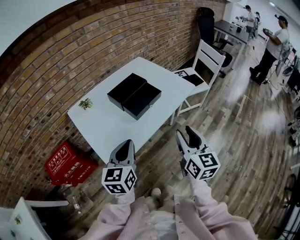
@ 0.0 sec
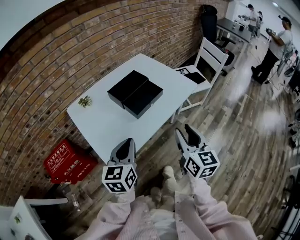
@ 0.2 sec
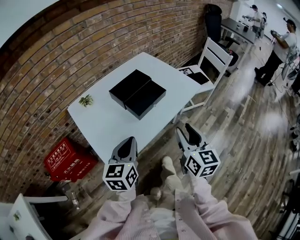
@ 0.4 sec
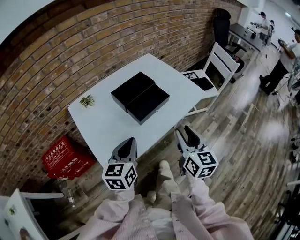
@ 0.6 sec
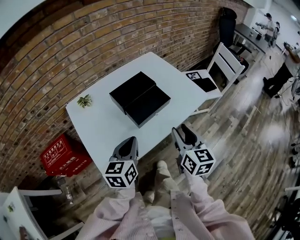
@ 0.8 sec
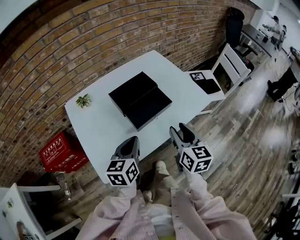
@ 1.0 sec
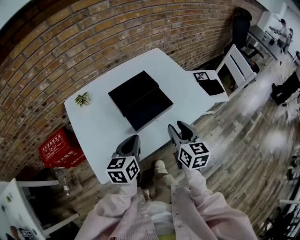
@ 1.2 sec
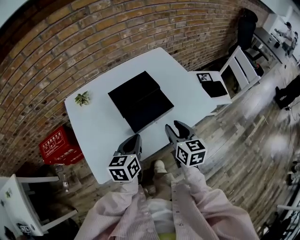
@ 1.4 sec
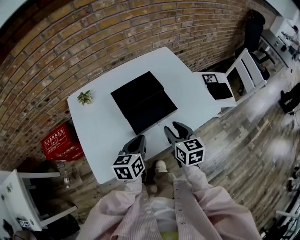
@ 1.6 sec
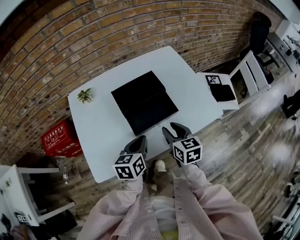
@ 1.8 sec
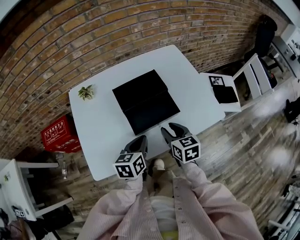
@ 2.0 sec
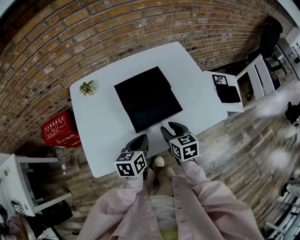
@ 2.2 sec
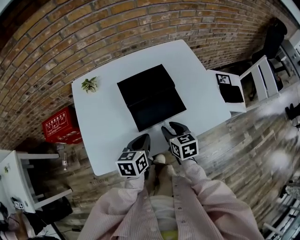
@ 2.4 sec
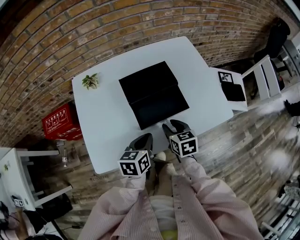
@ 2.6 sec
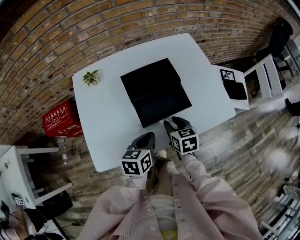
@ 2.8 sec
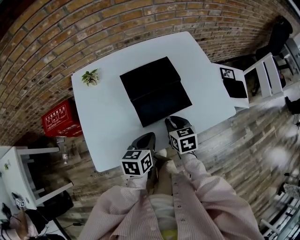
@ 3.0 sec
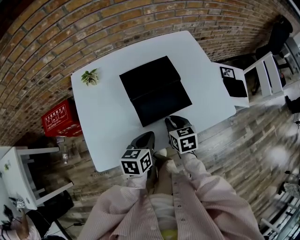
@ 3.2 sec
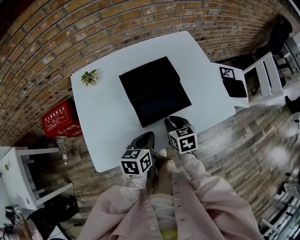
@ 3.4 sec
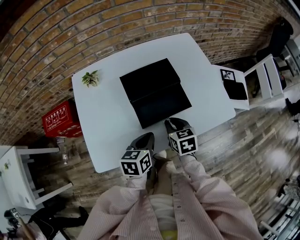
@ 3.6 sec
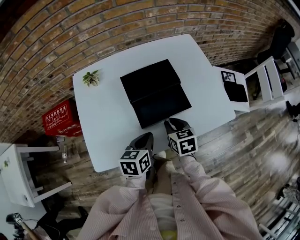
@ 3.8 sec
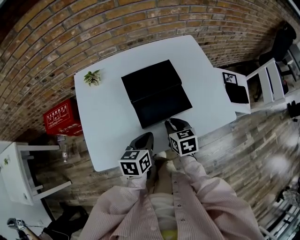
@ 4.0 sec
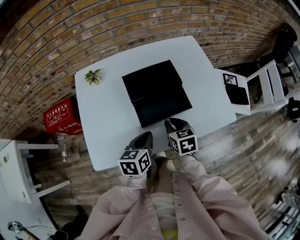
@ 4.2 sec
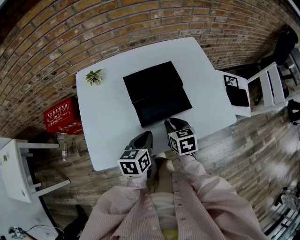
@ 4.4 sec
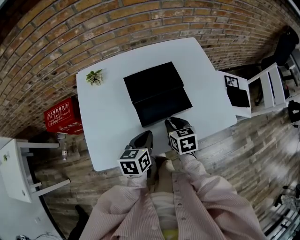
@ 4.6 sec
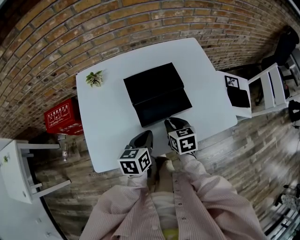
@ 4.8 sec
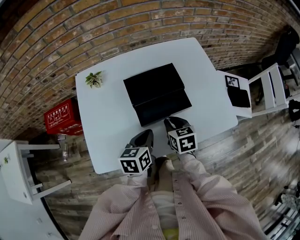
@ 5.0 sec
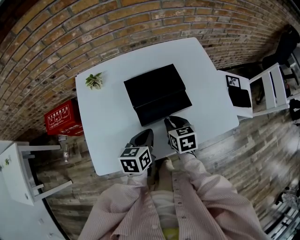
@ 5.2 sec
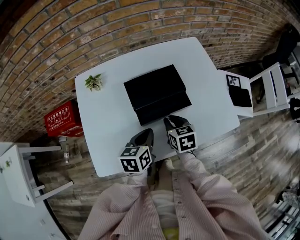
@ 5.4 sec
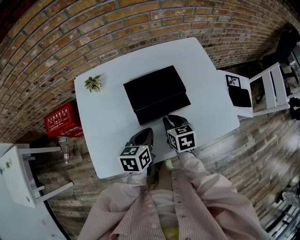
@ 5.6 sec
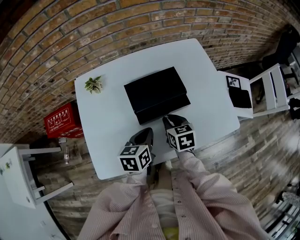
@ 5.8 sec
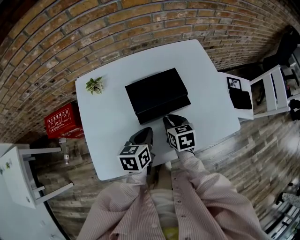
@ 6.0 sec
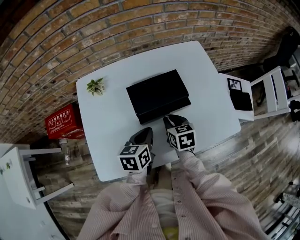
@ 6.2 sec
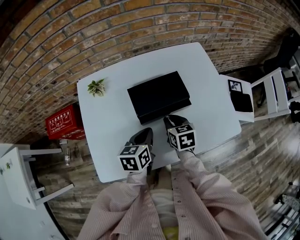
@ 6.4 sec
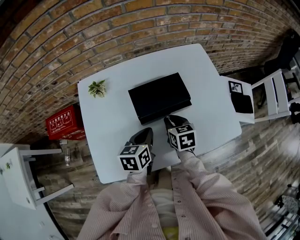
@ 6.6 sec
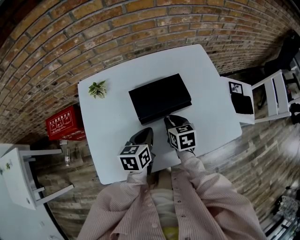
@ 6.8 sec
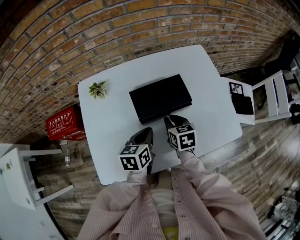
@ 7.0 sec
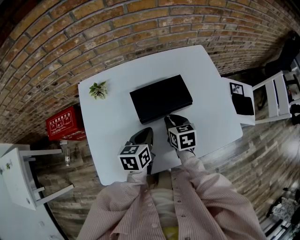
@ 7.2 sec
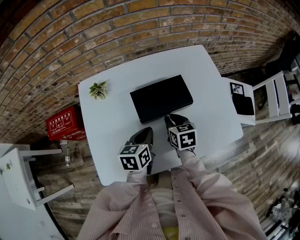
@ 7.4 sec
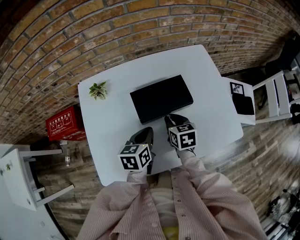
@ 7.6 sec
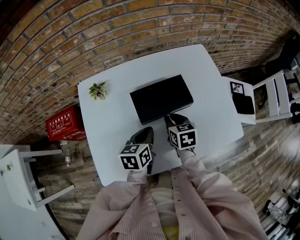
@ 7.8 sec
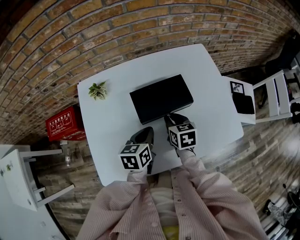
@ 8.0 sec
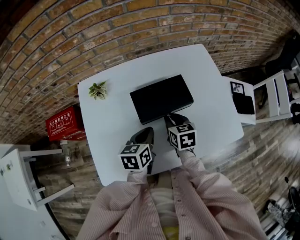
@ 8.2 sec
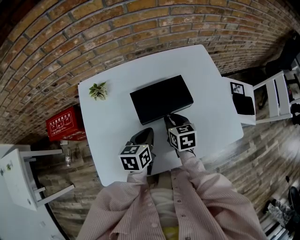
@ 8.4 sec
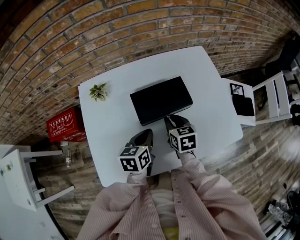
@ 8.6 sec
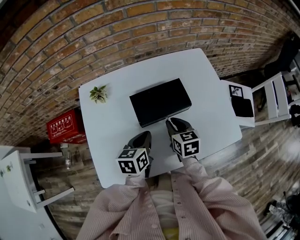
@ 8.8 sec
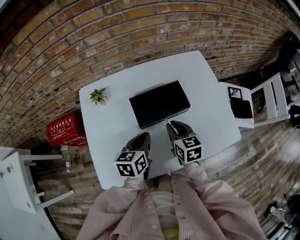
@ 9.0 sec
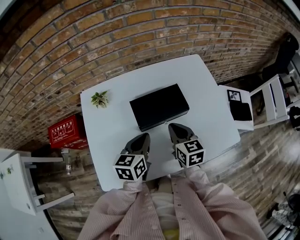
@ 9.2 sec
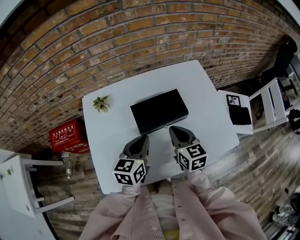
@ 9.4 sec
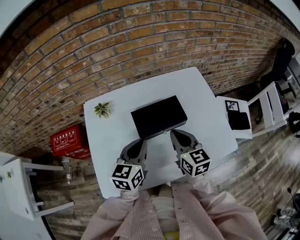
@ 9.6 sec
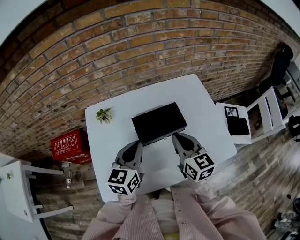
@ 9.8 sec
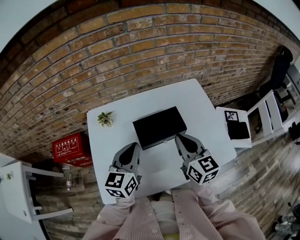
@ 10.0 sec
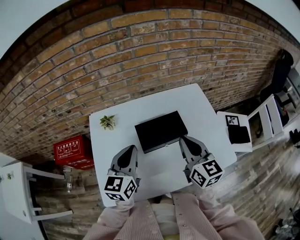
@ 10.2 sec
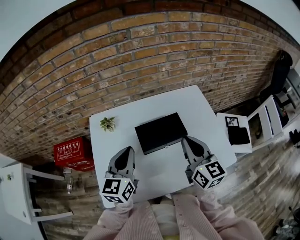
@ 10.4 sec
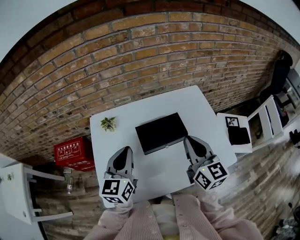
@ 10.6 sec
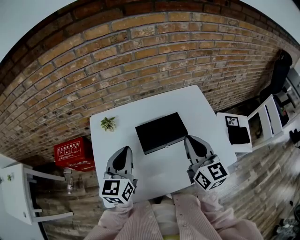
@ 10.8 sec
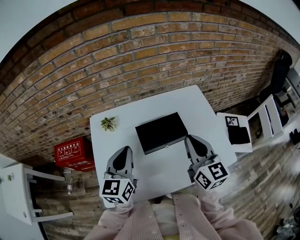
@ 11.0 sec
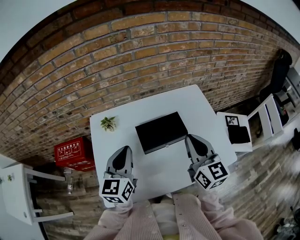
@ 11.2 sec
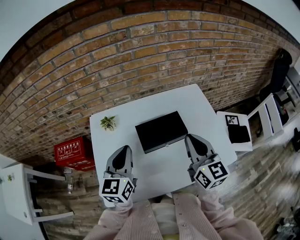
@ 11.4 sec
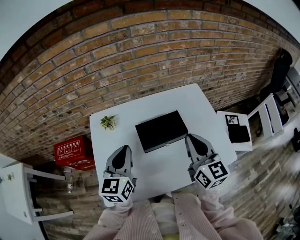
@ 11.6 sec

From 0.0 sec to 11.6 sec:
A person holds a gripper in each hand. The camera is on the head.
From 0.0 sec to 1.4 sec: The grippers both shift forward and downward by about 20 cm. The left gripper swivels approximately 20 degrees, while the right gripper turns by some 30 degrees.
From 1.4 sec to 2.8 sec: The left gripper goes about 5 cm downward. Meanwhile the right gripper heads downward and forward, covering approximately 10 cm, and changes its angle by about 30 degrees.
From 2.8 sec to 4.4 sec: There are only small adjustments of the grippers.
From 4.4 sec to 5.8 sec: The grippers both shift forward by about 5 cm.
From 5.8 sec to 8.8 sec: The grippers stay close to where they were, moving slightly.
From 8.8 sec to 10.2 sec: The grippers both shift upward by roughly 15 cm. The left gripper rotates about 30 degrees. The right gripper tilts its fingers some 30 degrees upward.
From 10.2 sec to 11.6 sec: The grippers make only small movements.

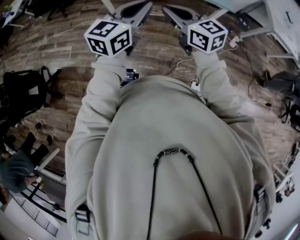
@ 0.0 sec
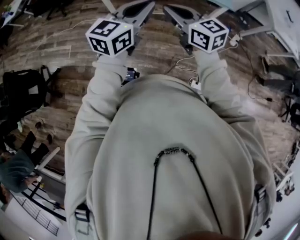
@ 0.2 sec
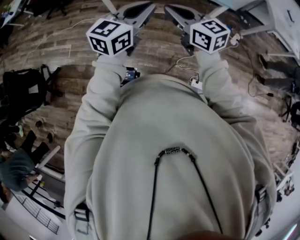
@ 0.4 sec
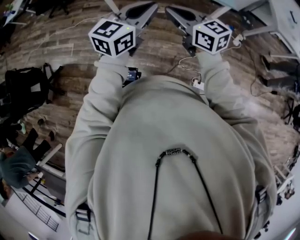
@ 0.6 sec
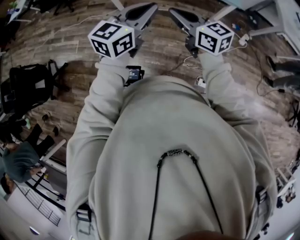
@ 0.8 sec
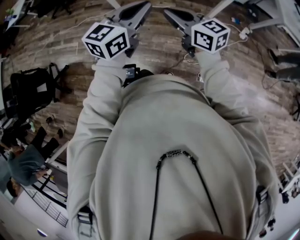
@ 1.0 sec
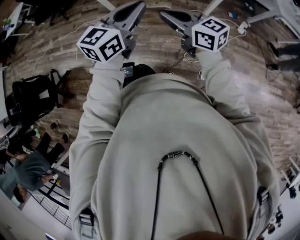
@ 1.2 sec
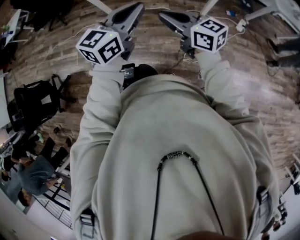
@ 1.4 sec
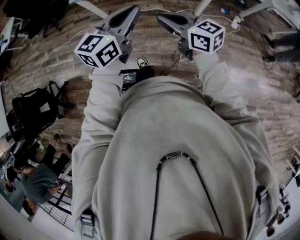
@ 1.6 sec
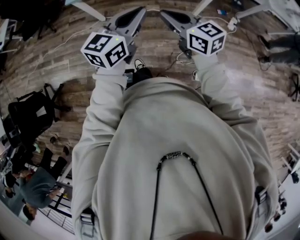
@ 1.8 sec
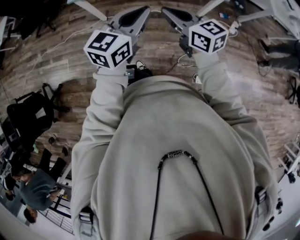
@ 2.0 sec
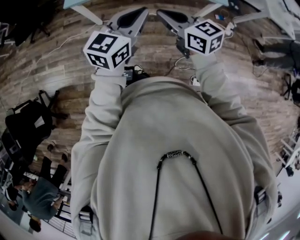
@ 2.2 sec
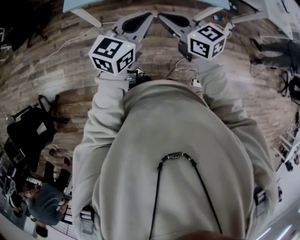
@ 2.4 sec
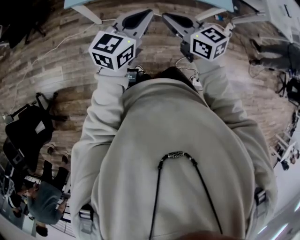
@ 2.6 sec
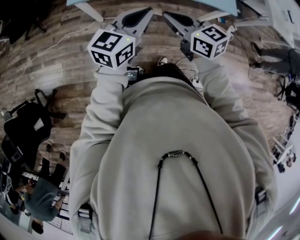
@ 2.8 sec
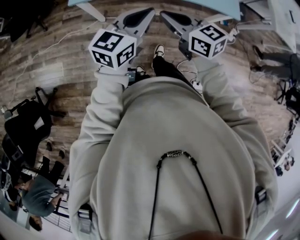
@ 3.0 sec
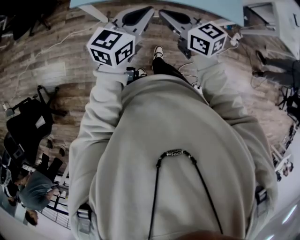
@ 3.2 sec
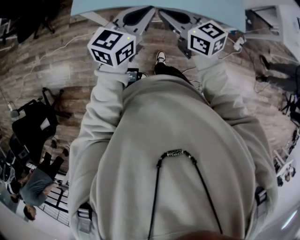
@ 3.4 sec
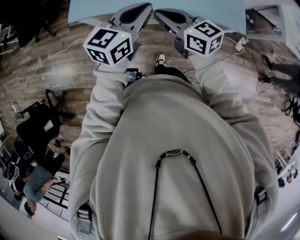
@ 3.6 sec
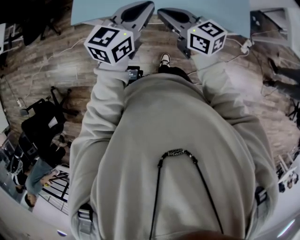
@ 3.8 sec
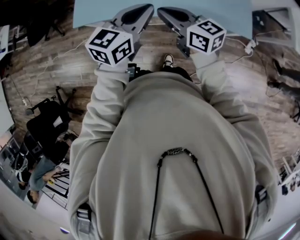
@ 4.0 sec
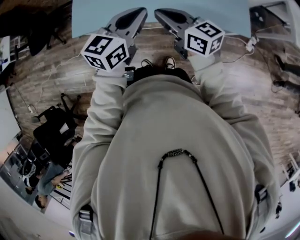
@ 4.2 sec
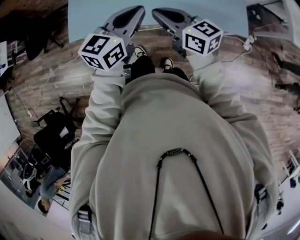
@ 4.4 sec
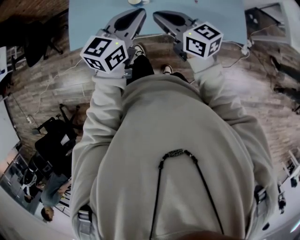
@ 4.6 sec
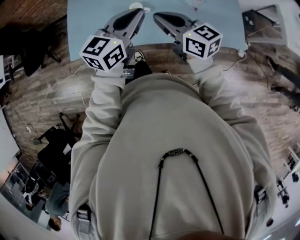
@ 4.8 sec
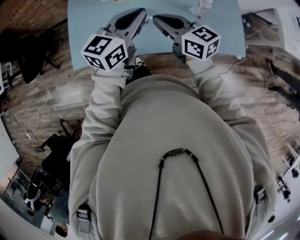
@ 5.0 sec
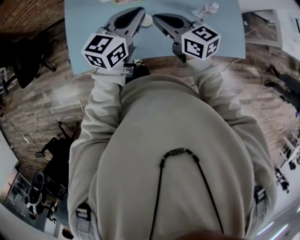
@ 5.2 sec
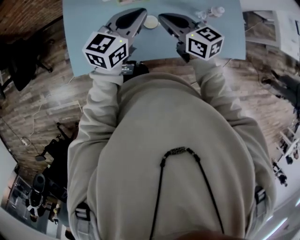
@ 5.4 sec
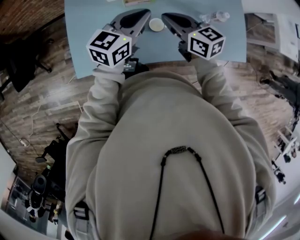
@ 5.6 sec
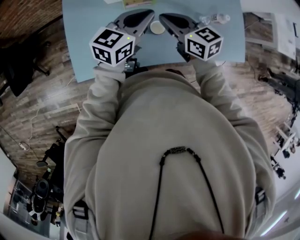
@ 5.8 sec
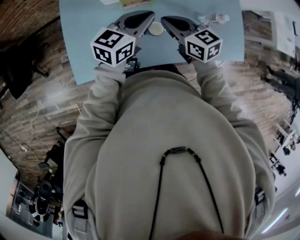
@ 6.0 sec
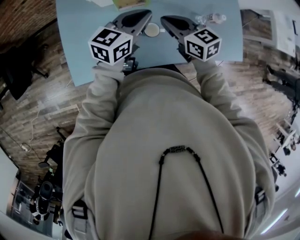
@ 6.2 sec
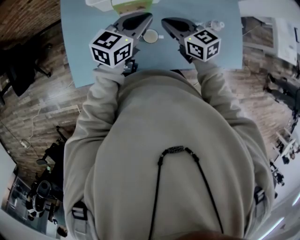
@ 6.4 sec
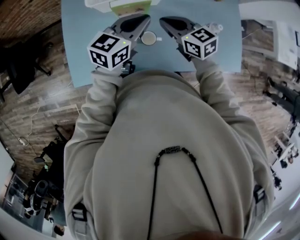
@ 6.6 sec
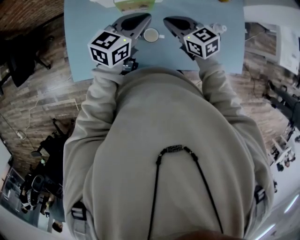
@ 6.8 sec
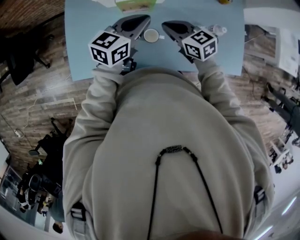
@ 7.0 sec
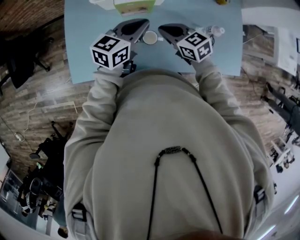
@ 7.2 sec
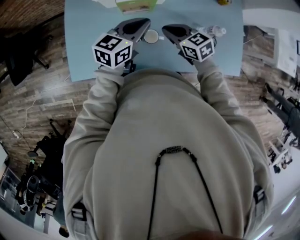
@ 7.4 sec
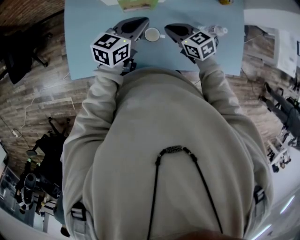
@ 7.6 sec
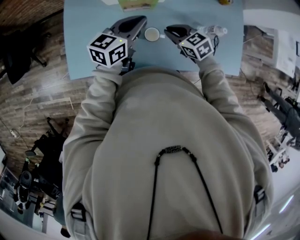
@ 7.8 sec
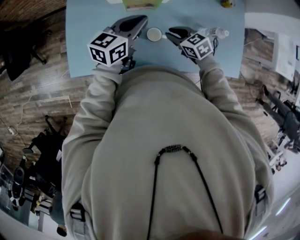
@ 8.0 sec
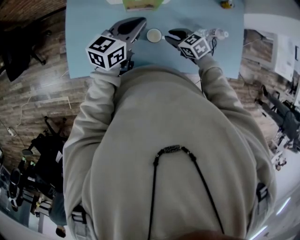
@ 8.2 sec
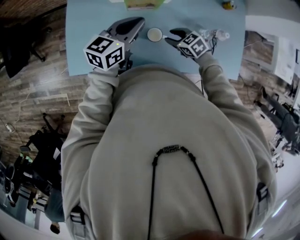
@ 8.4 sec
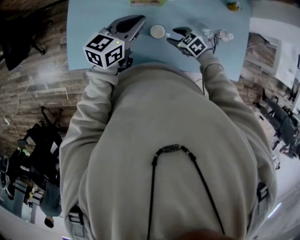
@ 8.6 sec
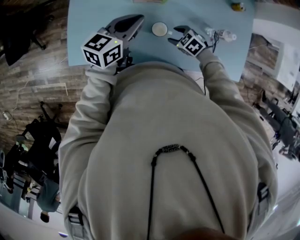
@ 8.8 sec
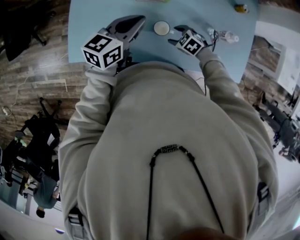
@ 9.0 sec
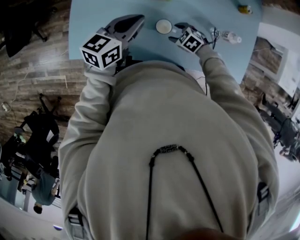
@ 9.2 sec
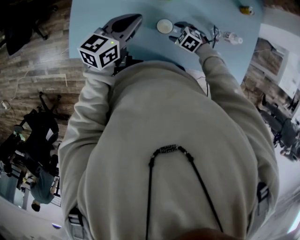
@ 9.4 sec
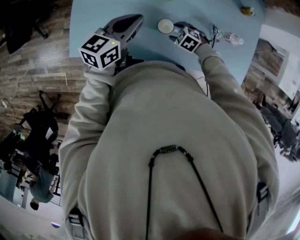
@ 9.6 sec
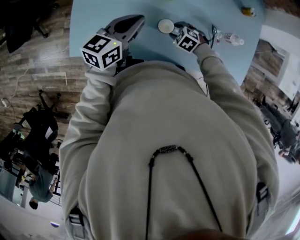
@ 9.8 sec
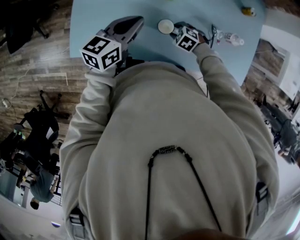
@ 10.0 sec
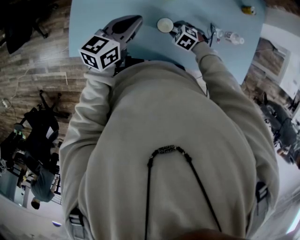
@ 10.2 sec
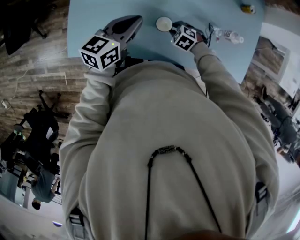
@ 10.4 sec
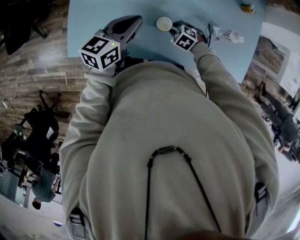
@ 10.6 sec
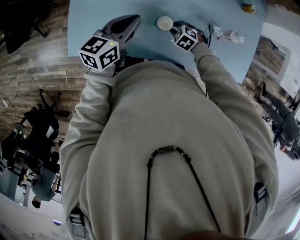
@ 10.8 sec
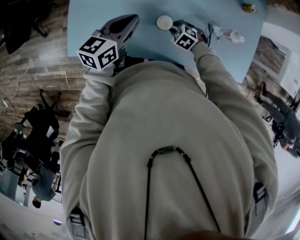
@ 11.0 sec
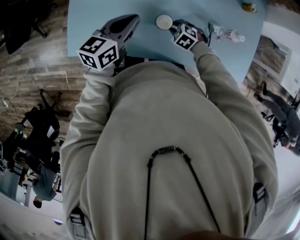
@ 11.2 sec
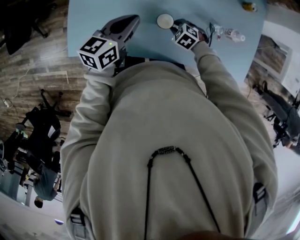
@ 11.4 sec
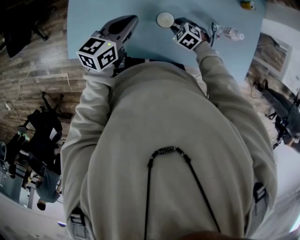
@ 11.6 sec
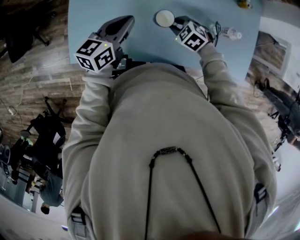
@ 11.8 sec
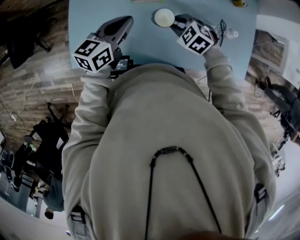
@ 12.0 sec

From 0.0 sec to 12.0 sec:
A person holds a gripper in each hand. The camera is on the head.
From 0.0 sec to 1.6 sec: The left gripper heads to the right, covering some 5 cm; the right gripper is displaced to the right and downward by some 10 cm.
From 1.6 sec to 3.0 sec: The grippers both shift forward and to the left by some 25 cm.
From 3.0 sec to 4.4 sec: The two grippers go roughly 25 cm forward and to the right.
From 4.4 sec to 6.0 sec: The grippers both shift forward and to the left by roughly 25 cm. The right gripper turns by some 20 degrees.
From 6.0 sec to 7.6 sec: The right gripper travels downward and to the right by about 10 cm.
From 7.6 sec to 9.0 sec: The right gripper moves downward, about 15 cm, changes its angle by about 40 degrees, and opens, while the left gripper shifts some 5 cm to the left.
From 9.0 sec to 10.4 sec: The right gripper closes its fingers.
From 10.4 sec to 12.0 sec: The right gripper goes some 15 cm upward.
